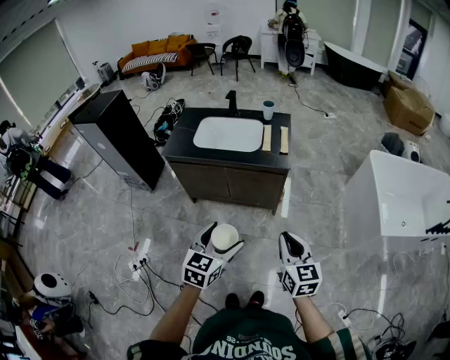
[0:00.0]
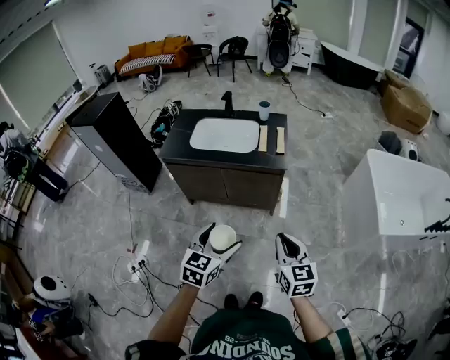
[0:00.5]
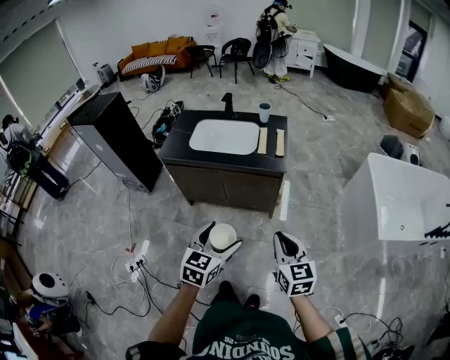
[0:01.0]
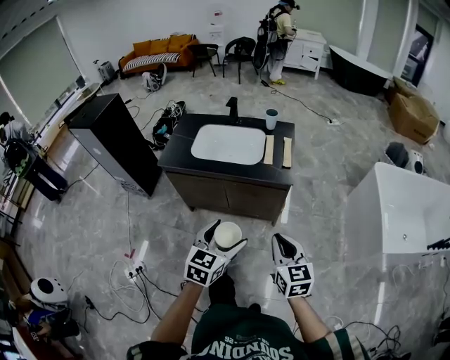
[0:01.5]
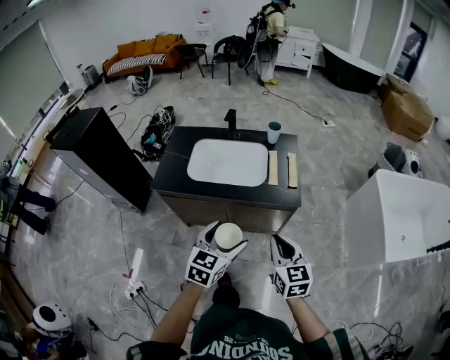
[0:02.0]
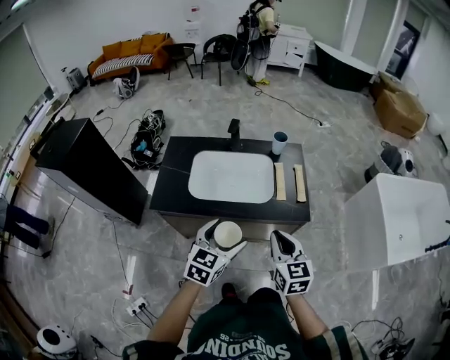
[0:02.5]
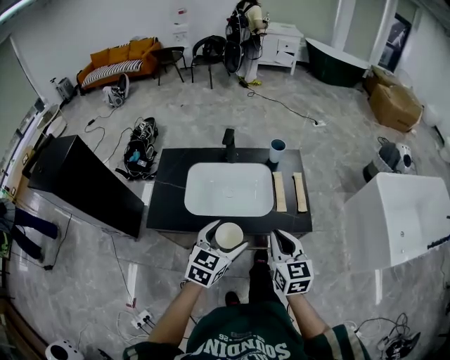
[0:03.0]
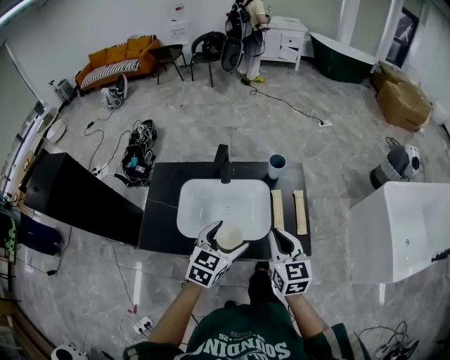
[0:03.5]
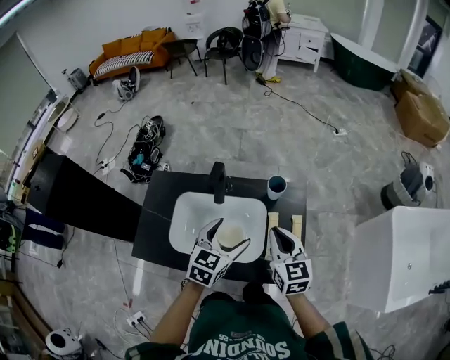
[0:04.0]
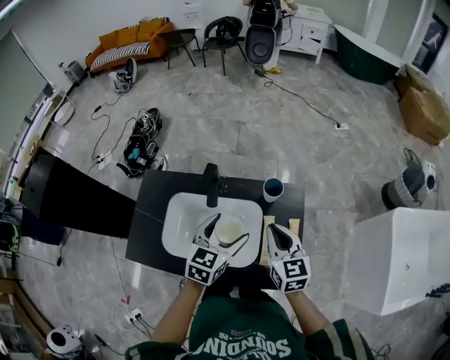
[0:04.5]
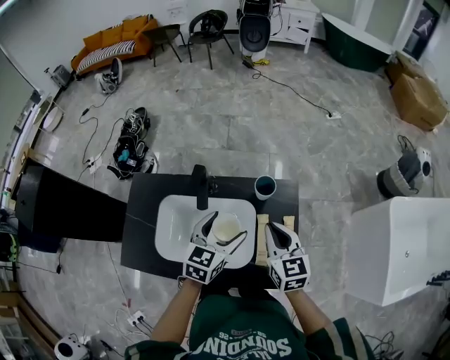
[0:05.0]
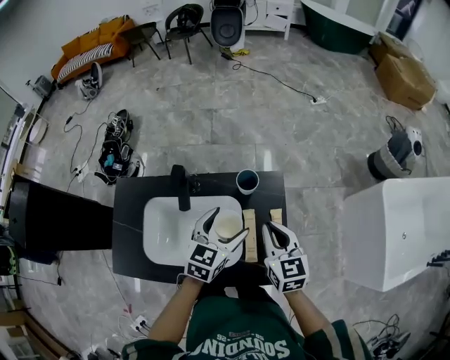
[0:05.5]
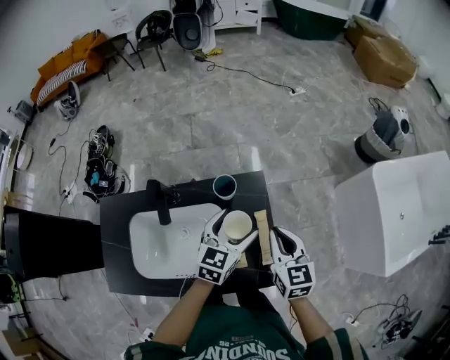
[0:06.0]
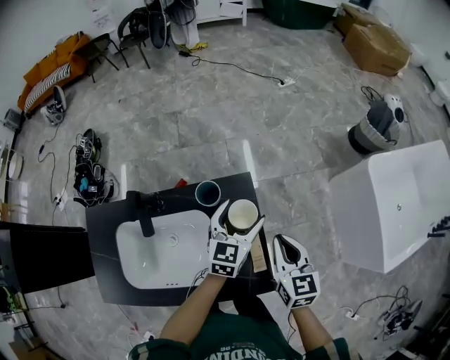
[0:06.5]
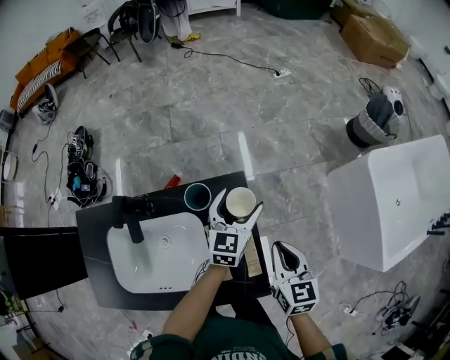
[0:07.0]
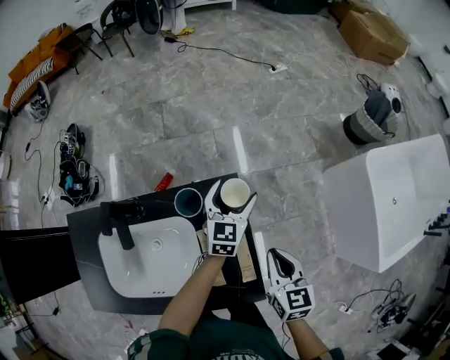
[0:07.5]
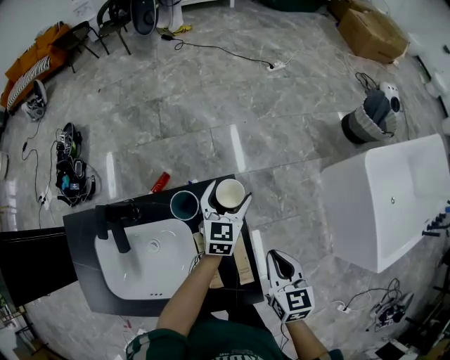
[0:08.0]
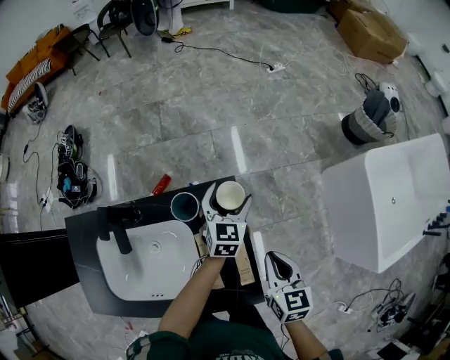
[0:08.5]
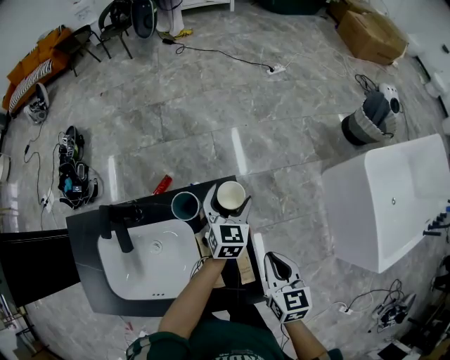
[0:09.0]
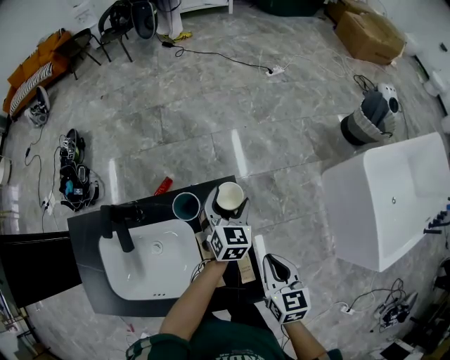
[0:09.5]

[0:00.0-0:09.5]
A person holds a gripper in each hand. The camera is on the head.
0:00.0 to 0:02.0: The left gripper moves forward, some 25 cm, while the right gripper moves forward and to the left, approximately 30 cm.
0:02.0 to 0:04.0: Both grippers are carried forward, about 50 cm.
0:04.0 to 0:05.5: The left gripper travels forward and to the right by approximately 15 cm. The right gripper goes roughly 10 cm to the right, forward and downward.
0:05.5 to 0:07.5: The left gripper is displaced forward, to the right and downward by some 30 cm. Meanwhile the right gripper heads to the right and downward, covering approximately 20 cm.
0:07.5 to 0:09.5: The grippers stay close to where they were, moving slightly.

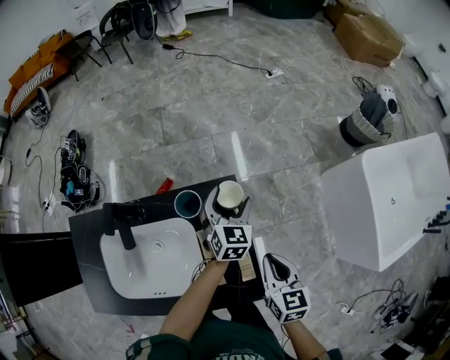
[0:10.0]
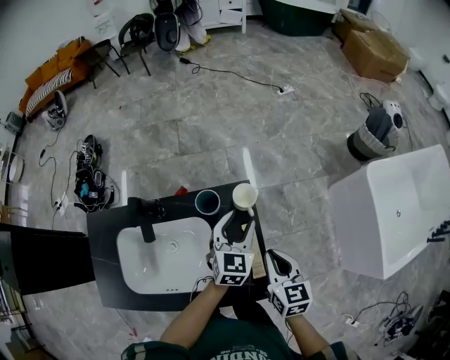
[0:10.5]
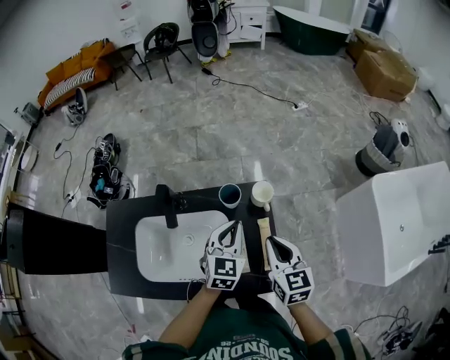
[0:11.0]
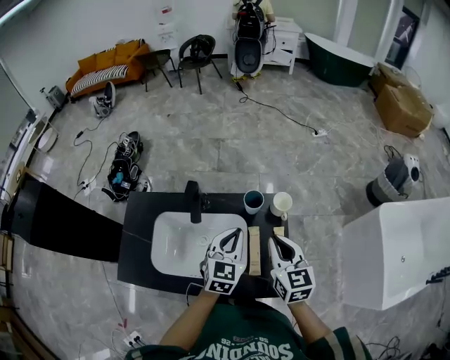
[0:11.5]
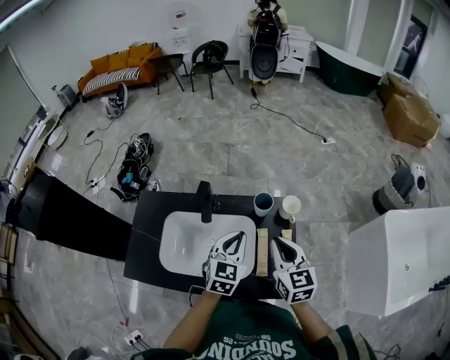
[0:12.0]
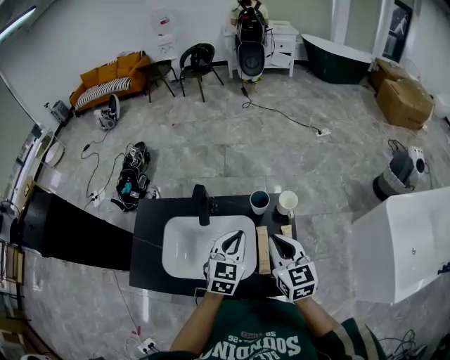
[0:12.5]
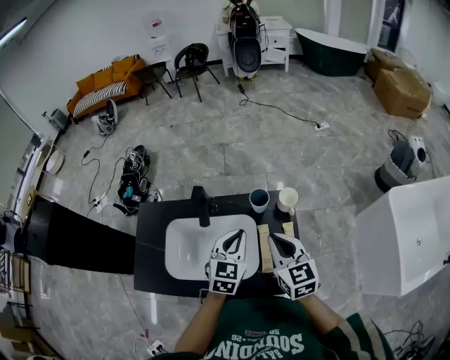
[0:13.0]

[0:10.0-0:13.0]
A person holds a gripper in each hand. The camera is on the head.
0:10.0 to 0:11.5: The right gripper moves to the left and upward, approximately 25 cm, and swivels roughly 20 degrees. Meanwhile the left gripper moves to the left, backward and upward, roughly 30 cm, and closes up.
0:11.5 to 0:13.0: There are only small adjustments of the grippers.

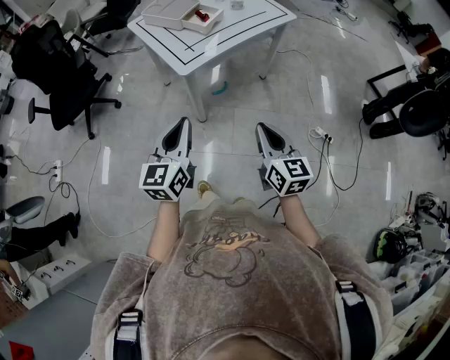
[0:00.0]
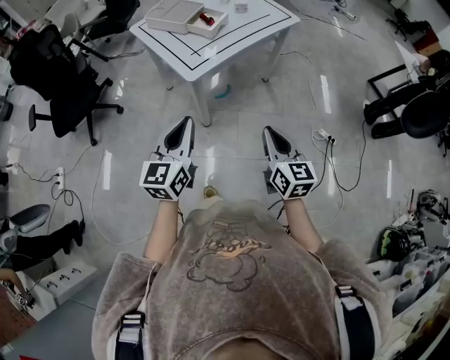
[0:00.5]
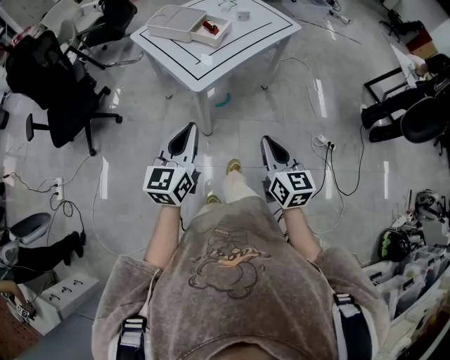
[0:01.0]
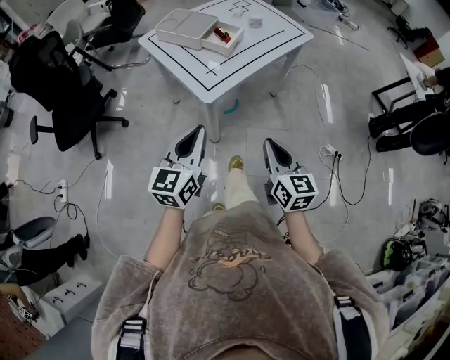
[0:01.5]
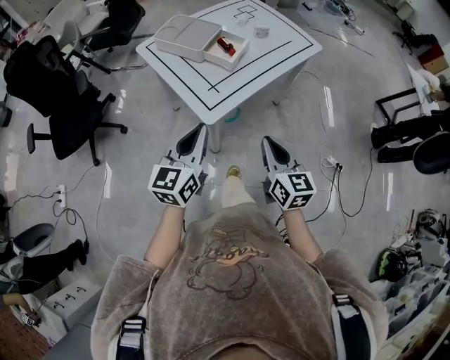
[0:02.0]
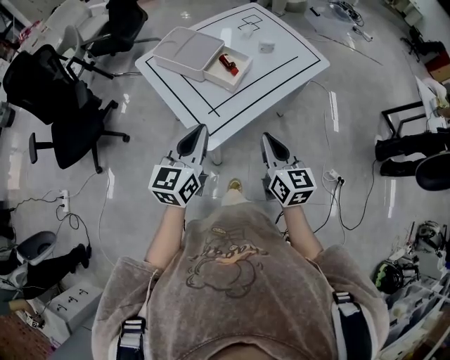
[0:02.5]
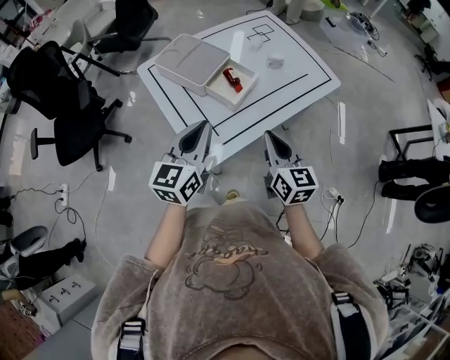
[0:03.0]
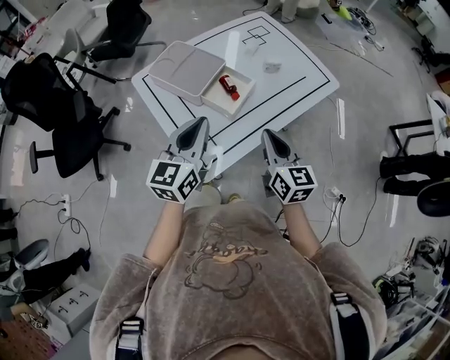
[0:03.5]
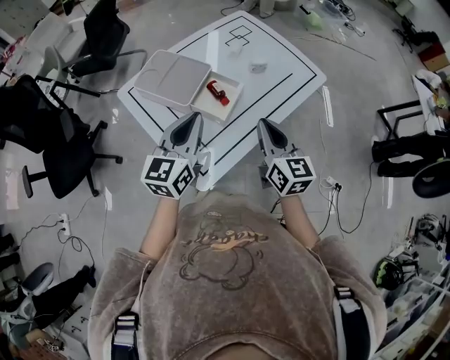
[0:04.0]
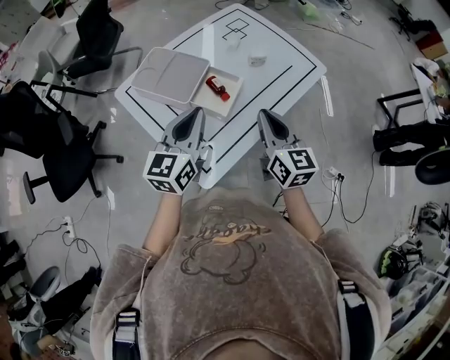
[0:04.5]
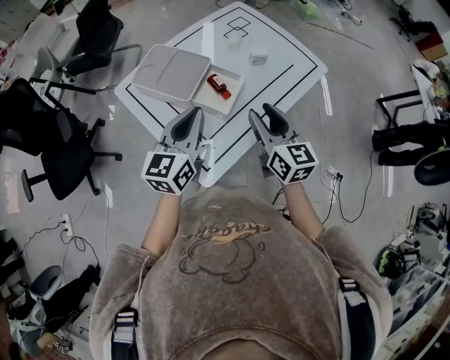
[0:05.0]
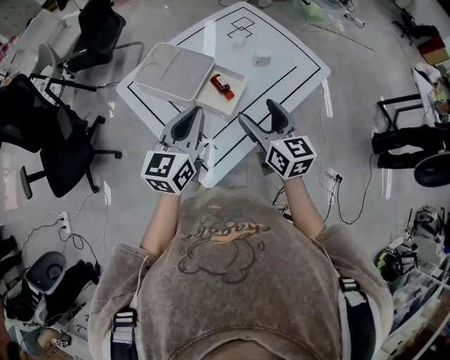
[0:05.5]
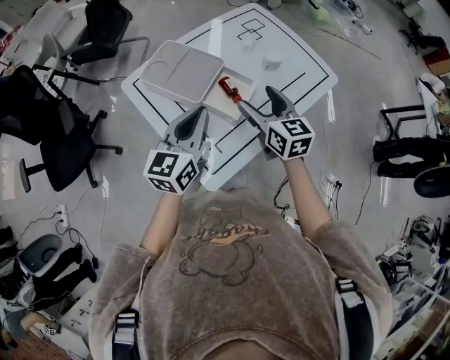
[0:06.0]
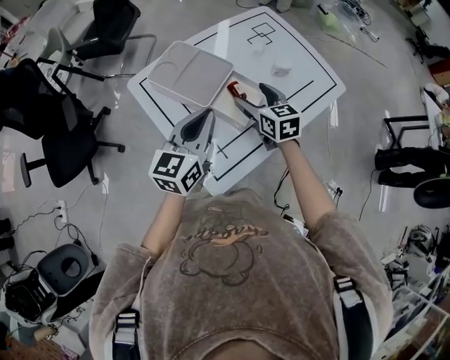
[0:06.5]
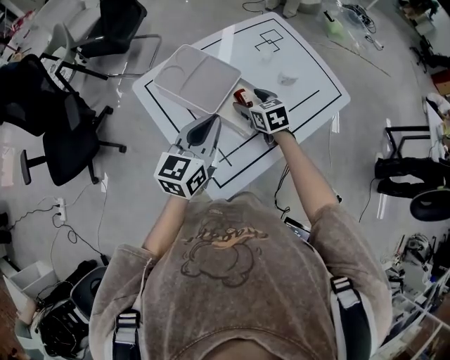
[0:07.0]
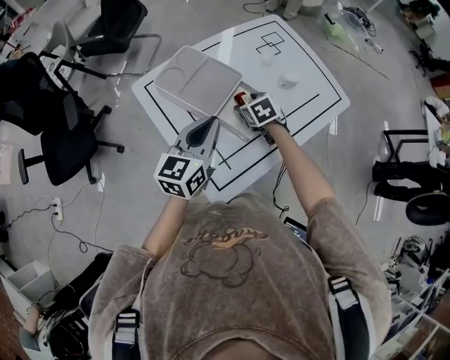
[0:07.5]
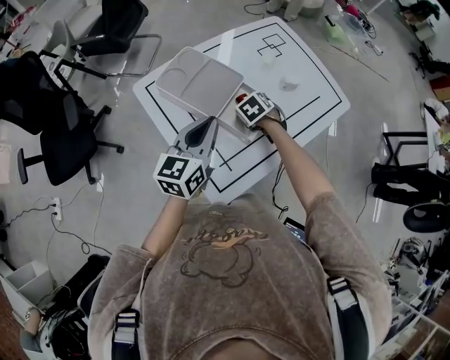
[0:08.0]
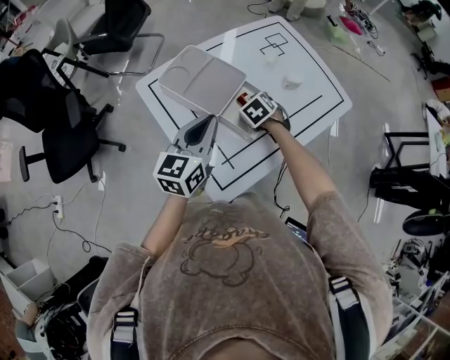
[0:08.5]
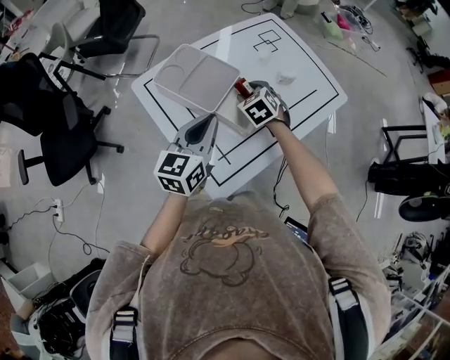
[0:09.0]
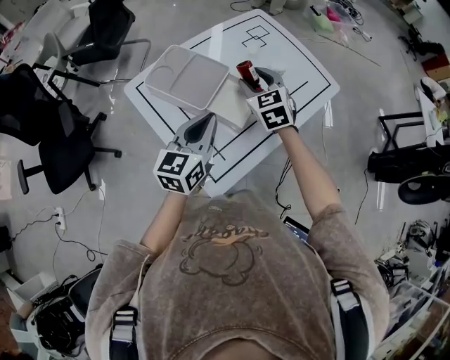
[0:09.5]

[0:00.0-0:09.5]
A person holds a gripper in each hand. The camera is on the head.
0:00.0 to 0:02.0: The right gripper is displaced forward and to the left by about 20 cm, while the left gripper is displaced forward by some 20 cm.
0:02.0 to 0:04.0: Both grippers move forward, approximately 30 cm.
0:04.0 to 0:05.5: The right gripper shifts by some 5 cm, and opens up.
0:05.5 to 0:07.5: The left gripper ends up approximately 5 cm from where it was, while the right gripper travels downward and forward by some 25 cm, and tilts its fingers roughly 40 degrees downward.
0:07.5 to 0:09.5: The right gripper shifts some 15 cm upward, and swivels some 30 degrees.

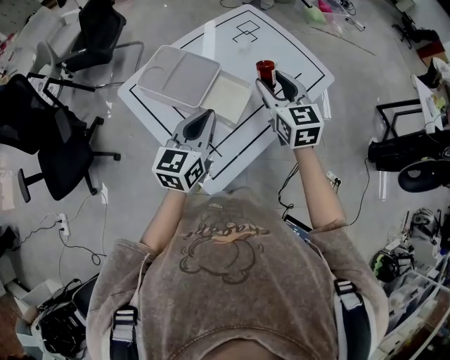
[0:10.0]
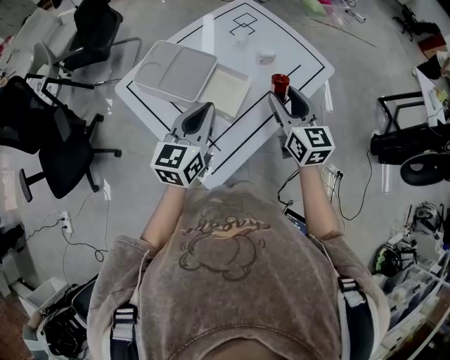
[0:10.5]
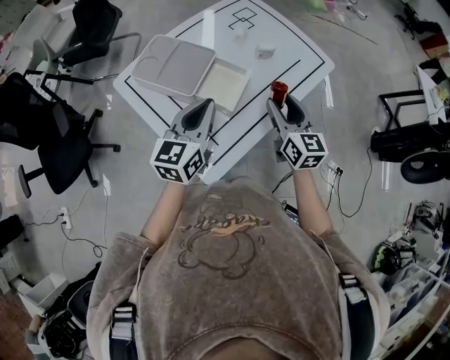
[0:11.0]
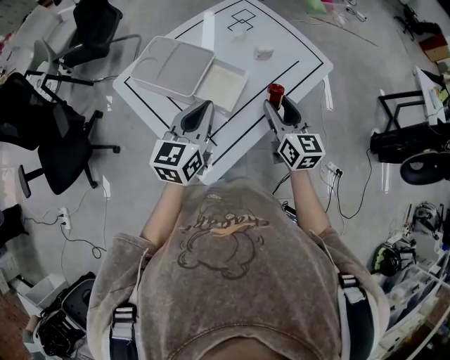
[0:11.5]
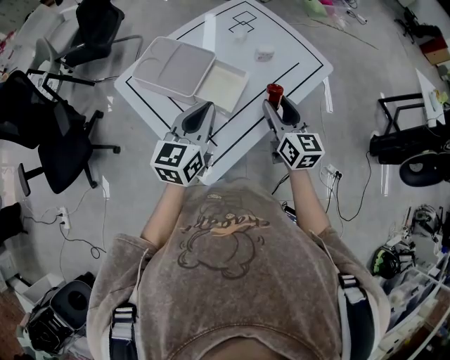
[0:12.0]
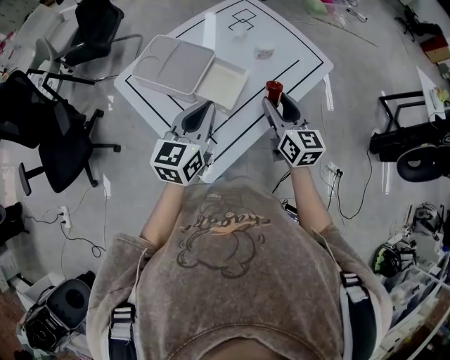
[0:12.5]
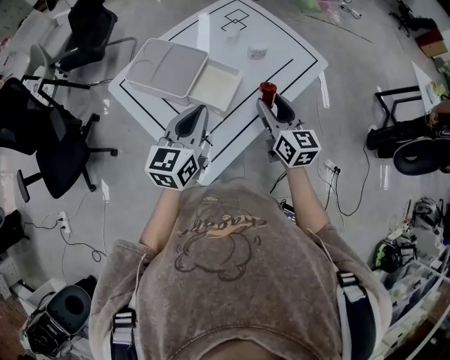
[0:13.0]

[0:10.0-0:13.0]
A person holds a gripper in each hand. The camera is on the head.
0:10.0 to 0:11.5: The right gripper shifts approximately 10 cm backward, downward and to the right.
0:11.5 to 0:13.0: The two grippers keep their place.

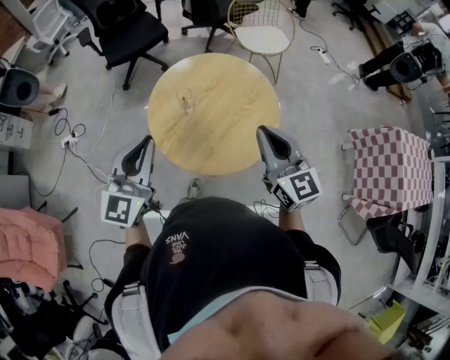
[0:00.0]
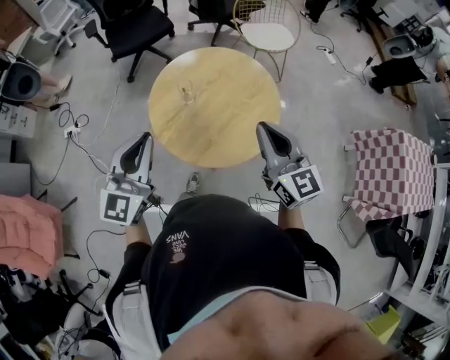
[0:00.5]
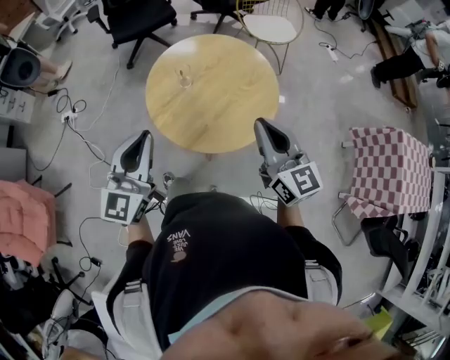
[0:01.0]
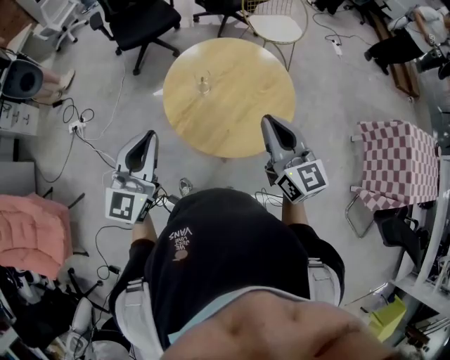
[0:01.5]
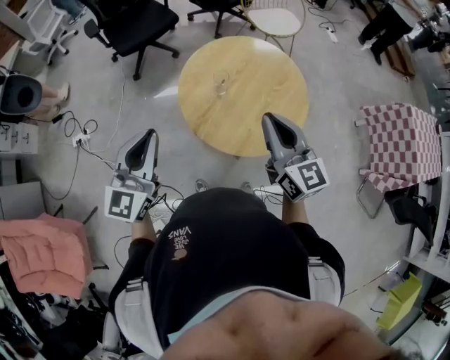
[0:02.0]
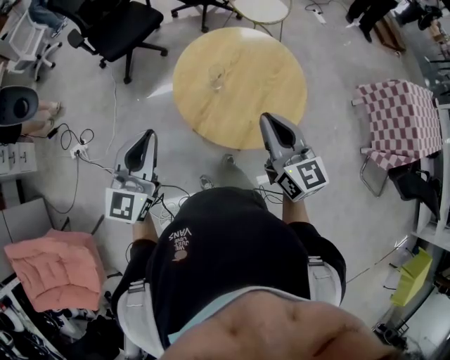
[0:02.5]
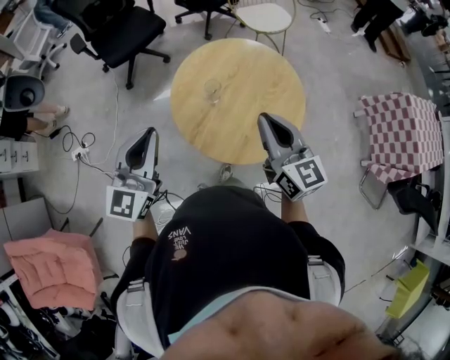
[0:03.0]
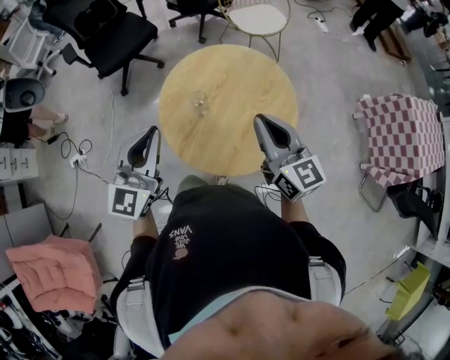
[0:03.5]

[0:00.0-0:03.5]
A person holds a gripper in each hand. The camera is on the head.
0:00.0 to 0:02.0: The two grippers go roughly 15 cm to the left.
0:02.0 to 0:03.5: Both grippers move forward and to the right, some 15 cm.
